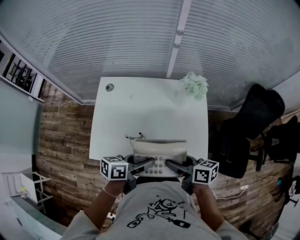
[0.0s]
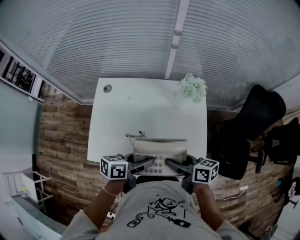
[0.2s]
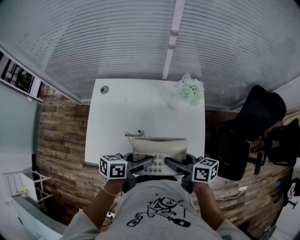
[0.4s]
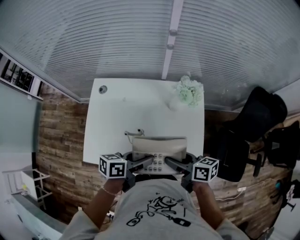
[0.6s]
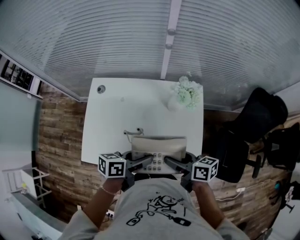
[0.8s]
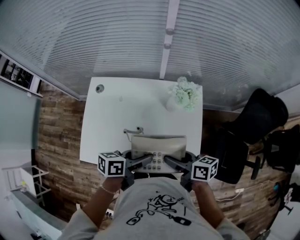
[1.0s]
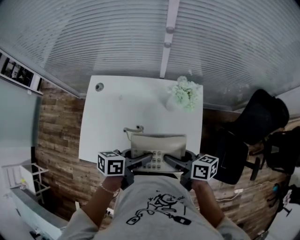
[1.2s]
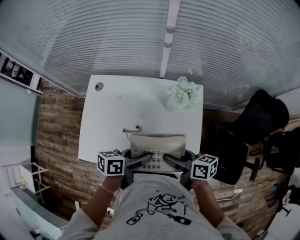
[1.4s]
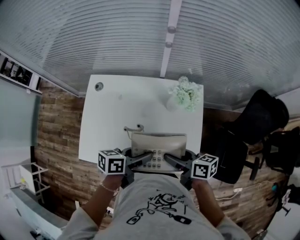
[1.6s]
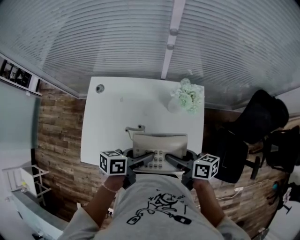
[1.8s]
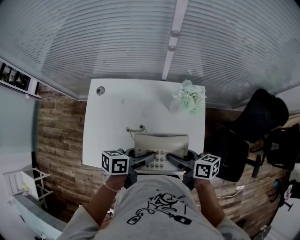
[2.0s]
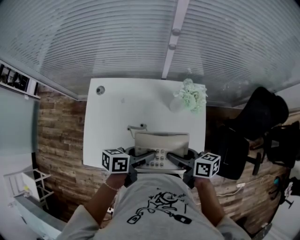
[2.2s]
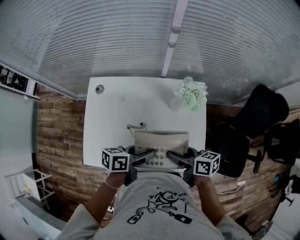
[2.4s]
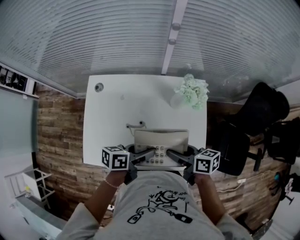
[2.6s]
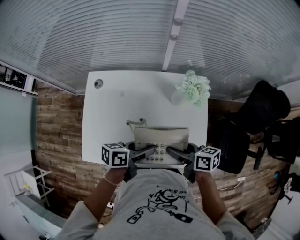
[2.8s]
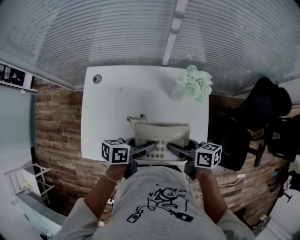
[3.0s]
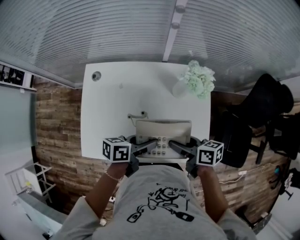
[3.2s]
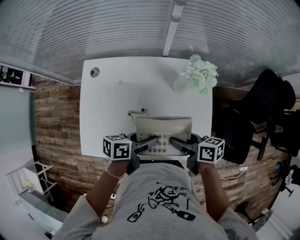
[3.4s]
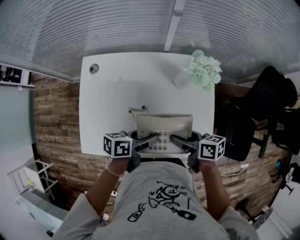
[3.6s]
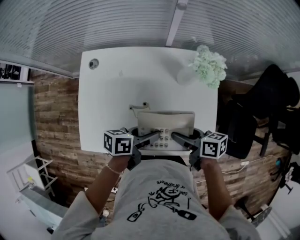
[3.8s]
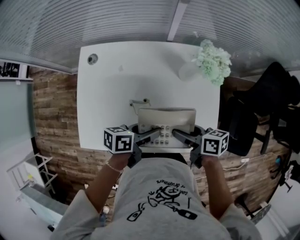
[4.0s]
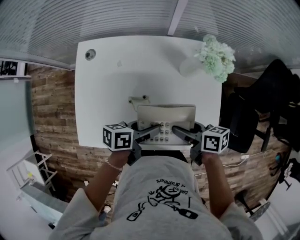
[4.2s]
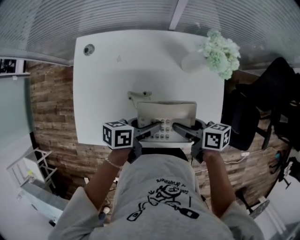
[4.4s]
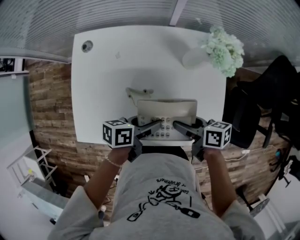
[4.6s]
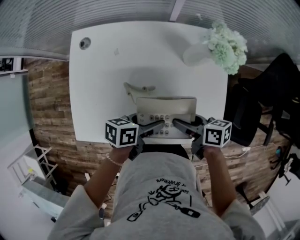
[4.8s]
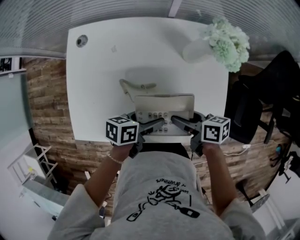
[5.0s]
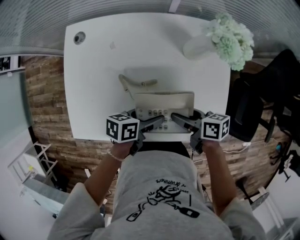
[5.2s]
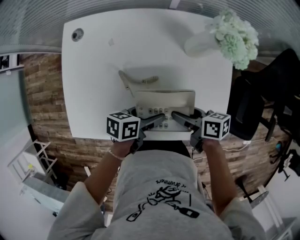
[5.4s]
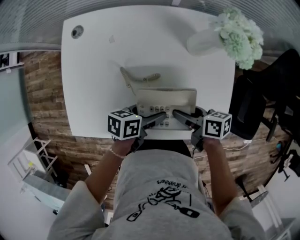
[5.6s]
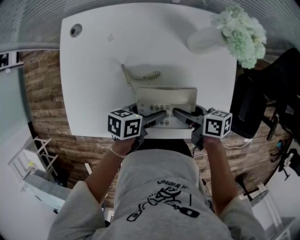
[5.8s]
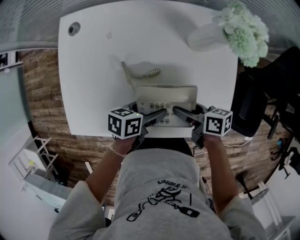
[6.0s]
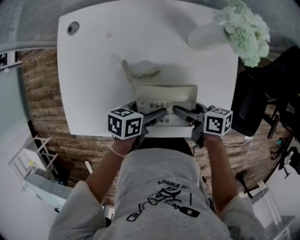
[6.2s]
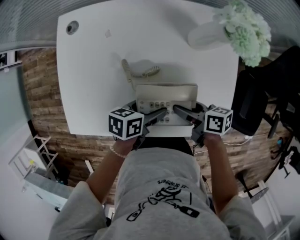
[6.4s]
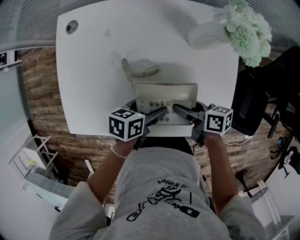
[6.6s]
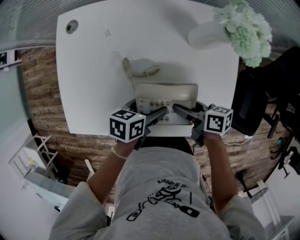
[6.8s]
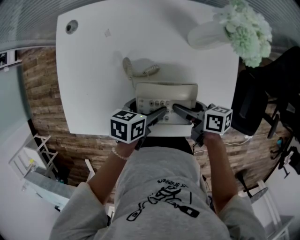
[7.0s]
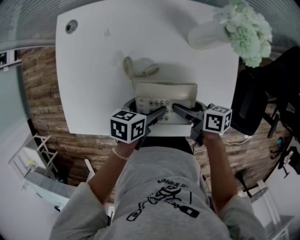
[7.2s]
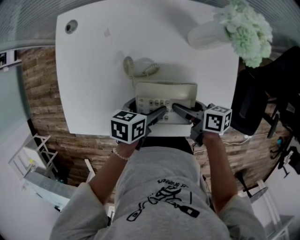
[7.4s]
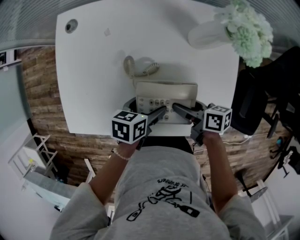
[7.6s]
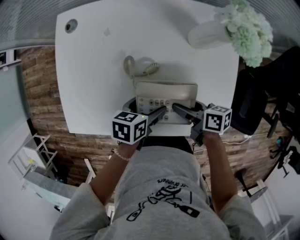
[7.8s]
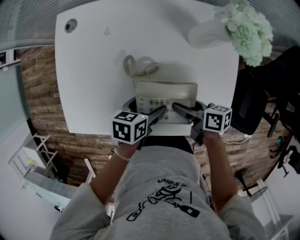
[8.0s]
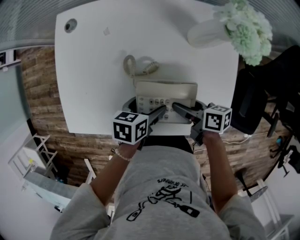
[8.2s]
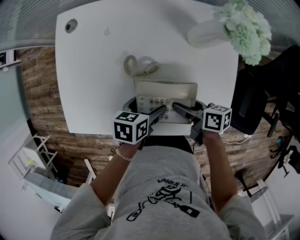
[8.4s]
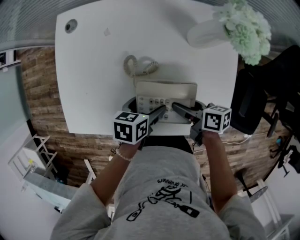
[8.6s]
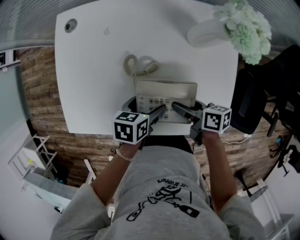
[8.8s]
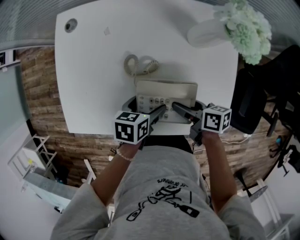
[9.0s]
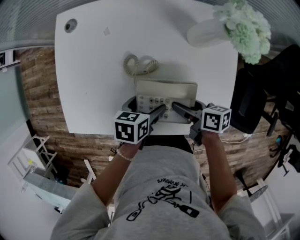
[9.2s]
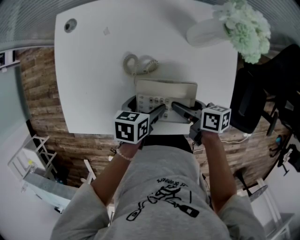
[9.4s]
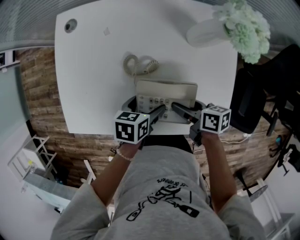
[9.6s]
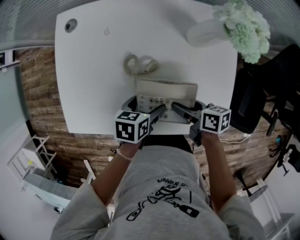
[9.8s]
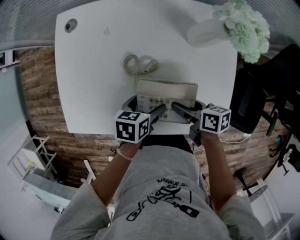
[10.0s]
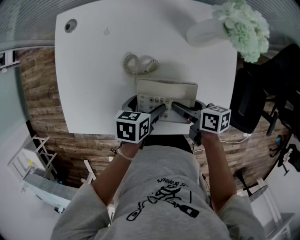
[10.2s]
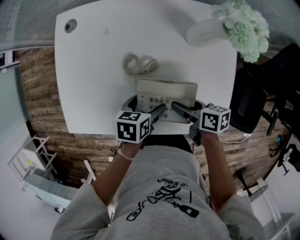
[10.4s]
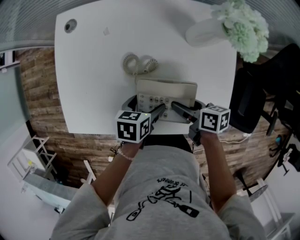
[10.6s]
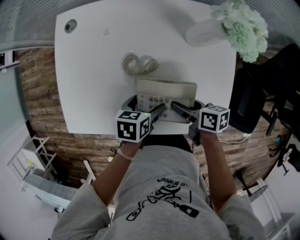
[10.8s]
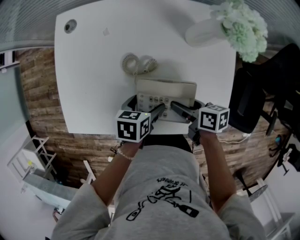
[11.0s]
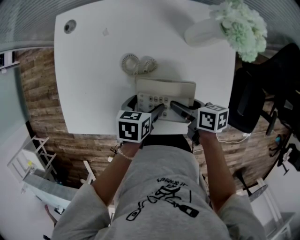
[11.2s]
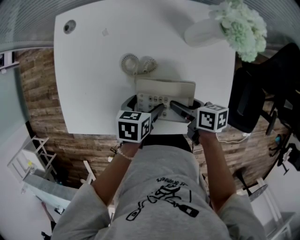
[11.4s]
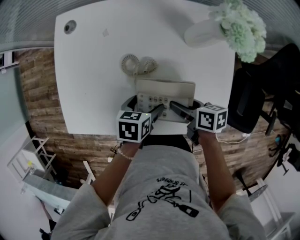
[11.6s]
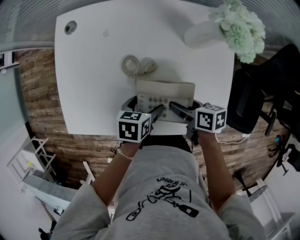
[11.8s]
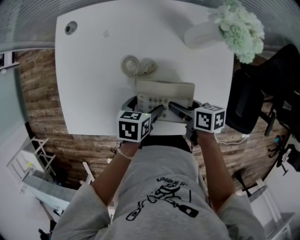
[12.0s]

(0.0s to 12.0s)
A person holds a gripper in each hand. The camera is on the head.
0.0s - 1.6s: The grippers both shift forward and to the right by approximately 10 cm.
1.6s - 3.0s: The grippers move only a little.
3.0s - 4.4s: Both grippers travel together downward, roughly 10 cm.
4.4s - 6.0s: The two grippers go approximately 10 cm downward.
6.0s - 9.0s: The grippers move only a little.
9.0s - 10.4s: The two grippers keep their place.
10.4s - 12.0s: The grippers make only small movements.

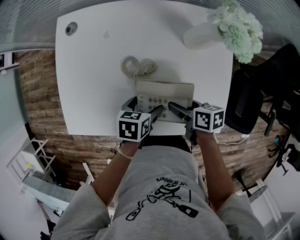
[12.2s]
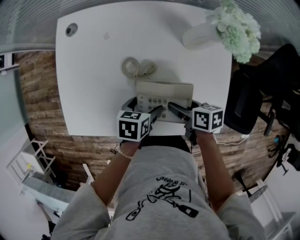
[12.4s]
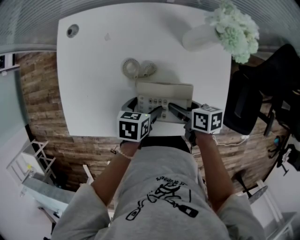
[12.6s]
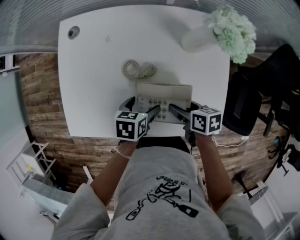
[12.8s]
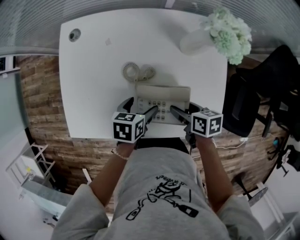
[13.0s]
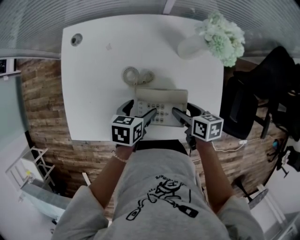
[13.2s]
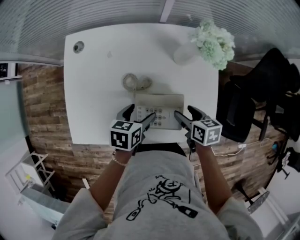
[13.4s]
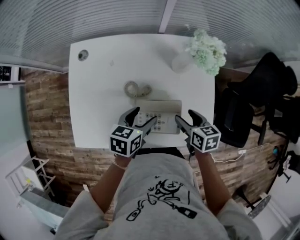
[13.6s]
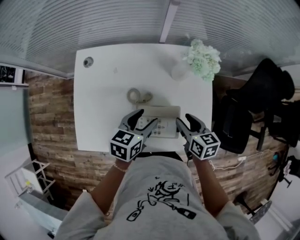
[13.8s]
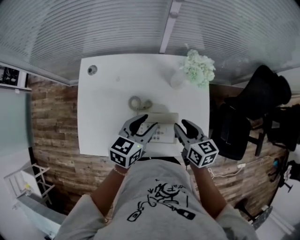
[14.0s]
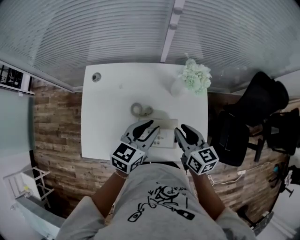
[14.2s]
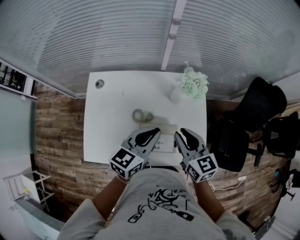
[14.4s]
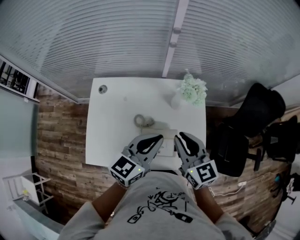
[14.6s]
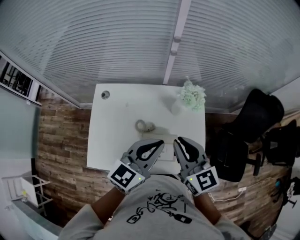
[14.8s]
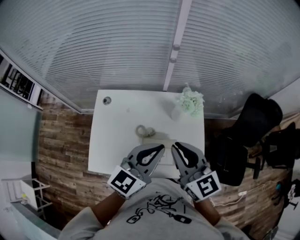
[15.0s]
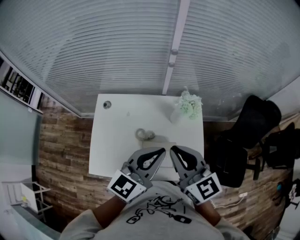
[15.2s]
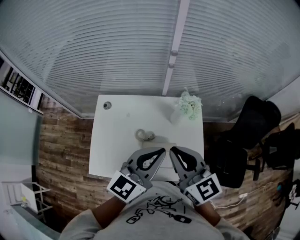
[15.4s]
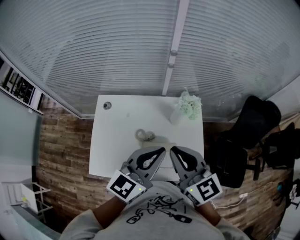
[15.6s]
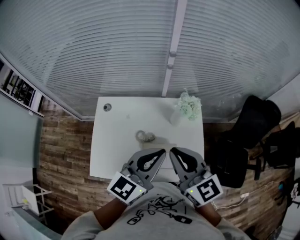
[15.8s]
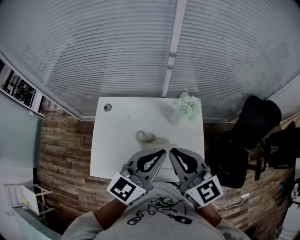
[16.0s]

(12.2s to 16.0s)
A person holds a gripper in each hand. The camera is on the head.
12.2s - 13.4s: The right gripper changes place by approximately 5 cm. The left gripper is displaced upward by approximately 5 cm.
13.4s - 14.8s: The grippers both shift upward by about 30 cm. The left gripper angles its fingers upward, by roughly 40 degrees, and closes, while the right gripper points its fingers approximately 40 degrees further upward, and closes.
14.8s - 16.0s: Both grippers move upward, roughly 5 cm.

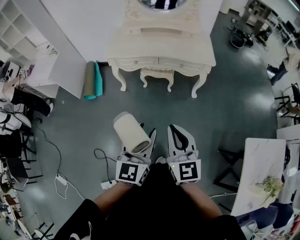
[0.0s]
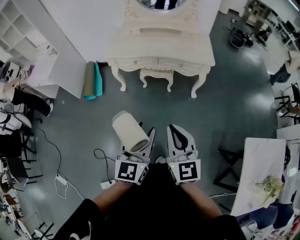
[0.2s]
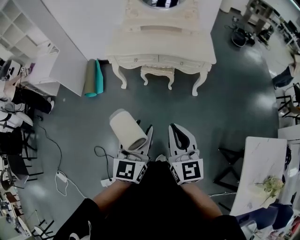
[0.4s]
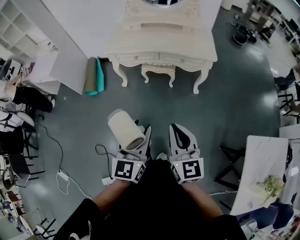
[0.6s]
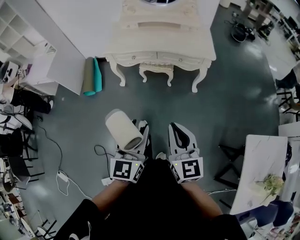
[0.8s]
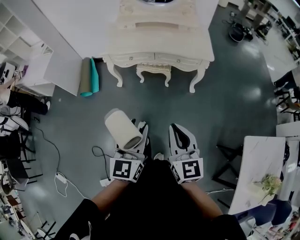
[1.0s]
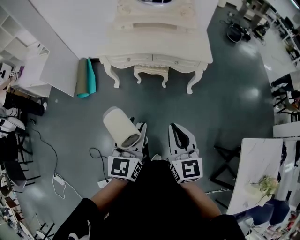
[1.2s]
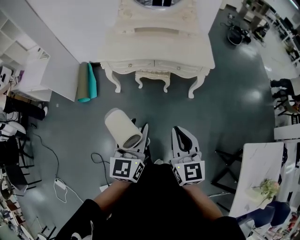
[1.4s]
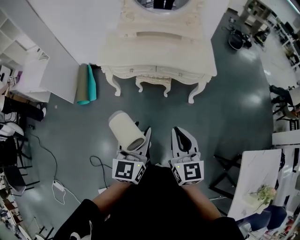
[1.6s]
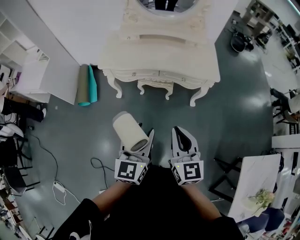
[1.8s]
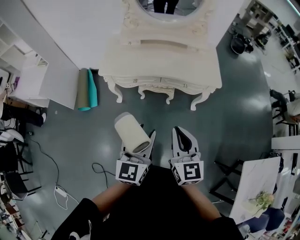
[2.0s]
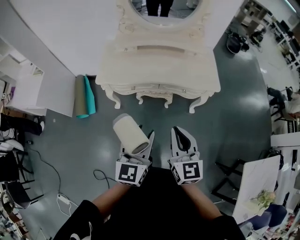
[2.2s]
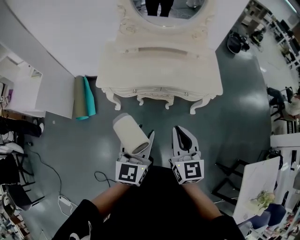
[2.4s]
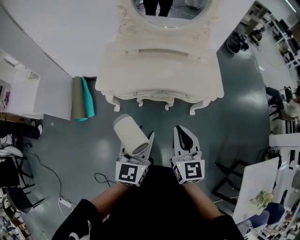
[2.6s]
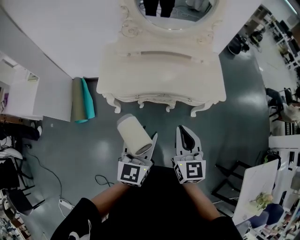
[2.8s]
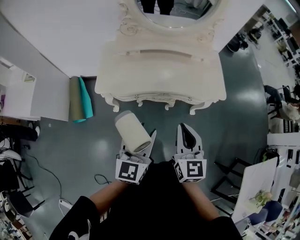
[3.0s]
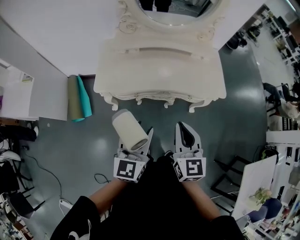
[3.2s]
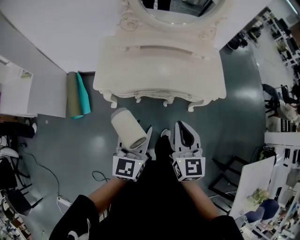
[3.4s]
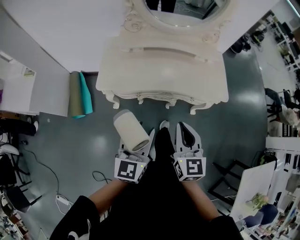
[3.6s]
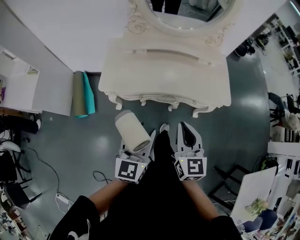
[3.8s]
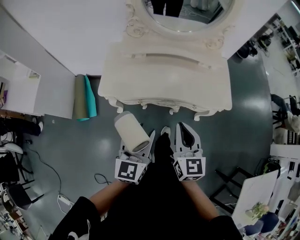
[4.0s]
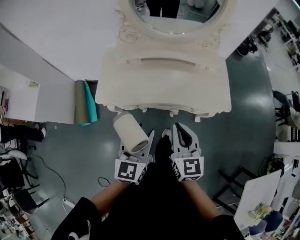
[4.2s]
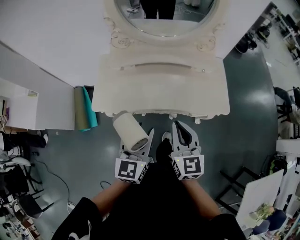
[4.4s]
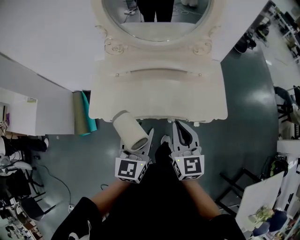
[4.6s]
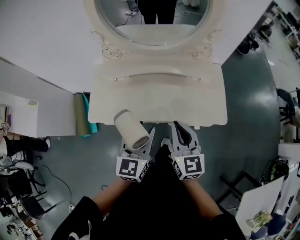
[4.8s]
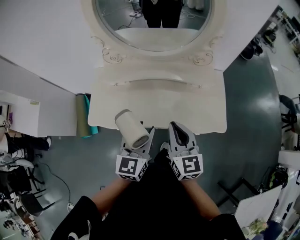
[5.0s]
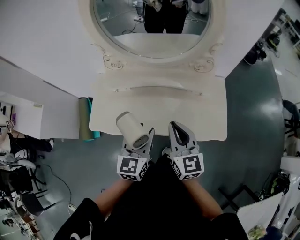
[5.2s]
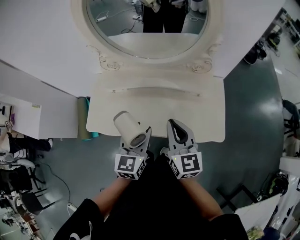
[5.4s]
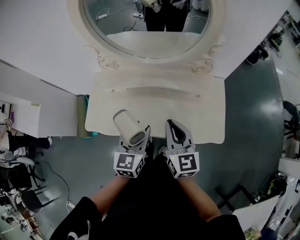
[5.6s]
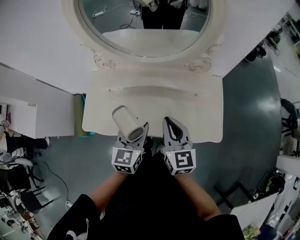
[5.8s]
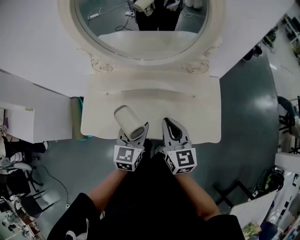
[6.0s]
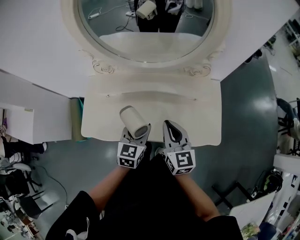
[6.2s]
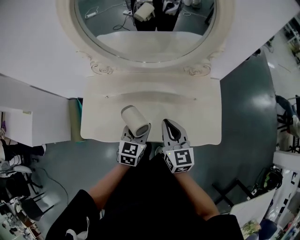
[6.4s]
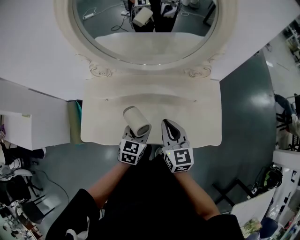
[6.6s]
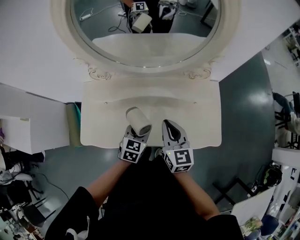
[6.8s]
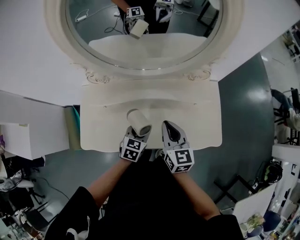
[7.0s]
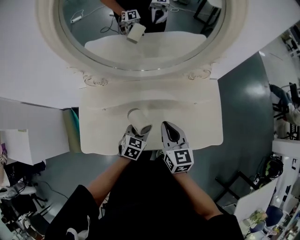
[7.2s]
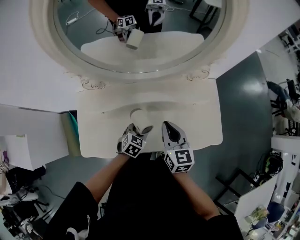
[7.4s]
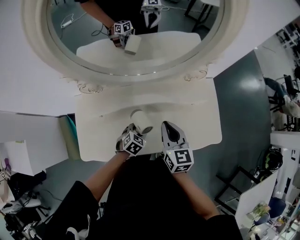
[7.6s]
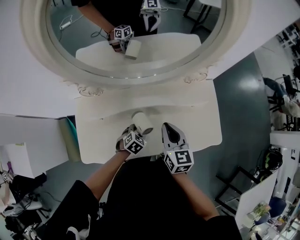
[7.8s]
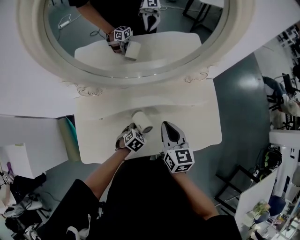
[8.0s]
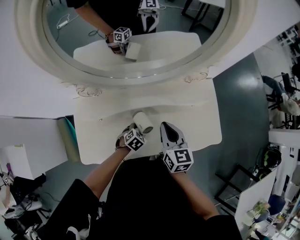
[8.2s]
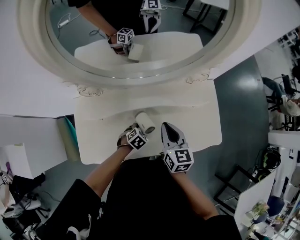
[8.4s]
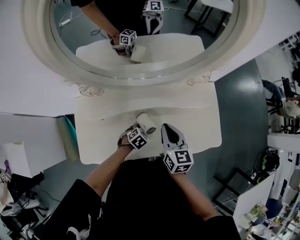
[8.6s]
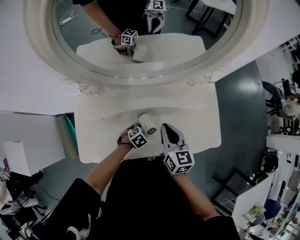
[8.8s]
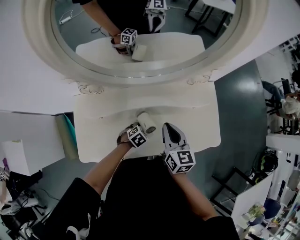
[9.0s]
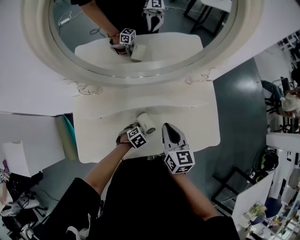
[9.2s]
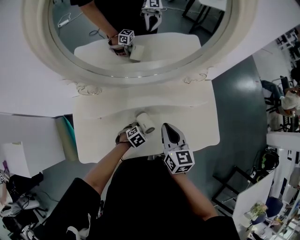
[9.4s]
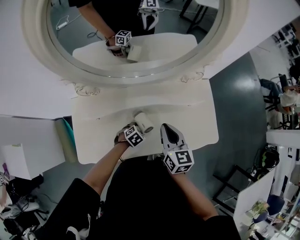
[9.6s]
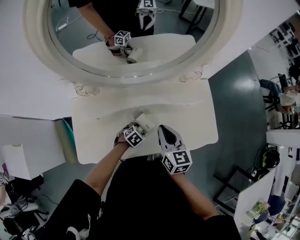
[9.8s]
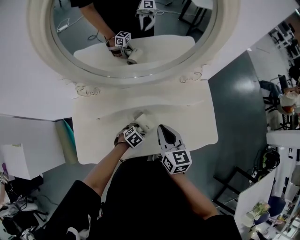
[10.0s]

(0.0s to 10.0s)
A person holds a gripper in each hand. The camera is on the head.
0.0s - 1.4s: Both grippers travel together forward, about 10 cm.
1.4s - 2.8s: The right gripper shifts roughly 30 cm forward and to the left. The left gripper shifts some 25 cm forward.
2.8s - 4.2s: Both grippers move forward, approximately 10 cm.
4.2s - 5.8s: The two grippers go about 25 cm forward and to the right.
5.8s - 7.2s: The left gripper travels downward and forward by roughly 20 cm, and changes its angle by about 30 degrees, while the right gripper goes roughly 10 cm forward and downward.
7.2s - 8.6s: The left gripper heads downward, covering some 10 cm, and rotates some 30 degrees.
8.6s - 10.0s: The grippers move only a little.
